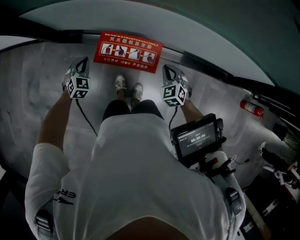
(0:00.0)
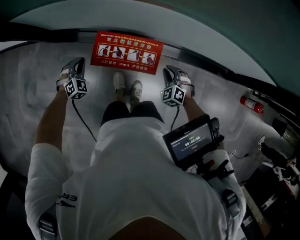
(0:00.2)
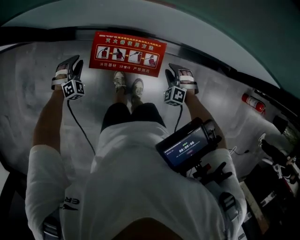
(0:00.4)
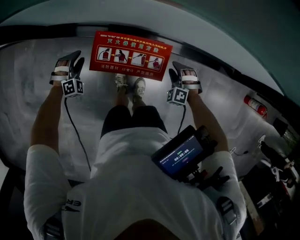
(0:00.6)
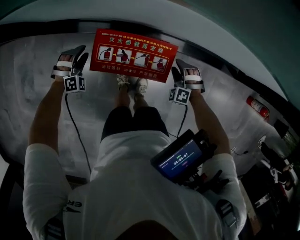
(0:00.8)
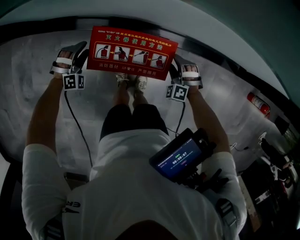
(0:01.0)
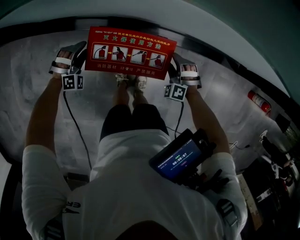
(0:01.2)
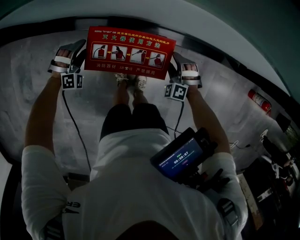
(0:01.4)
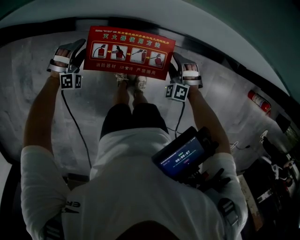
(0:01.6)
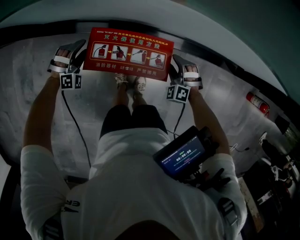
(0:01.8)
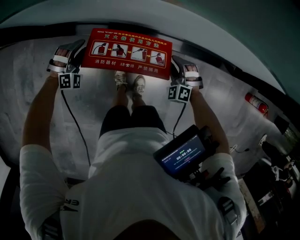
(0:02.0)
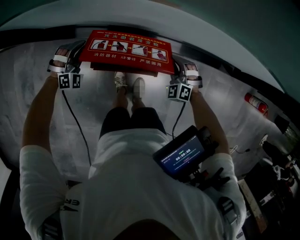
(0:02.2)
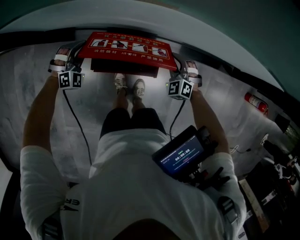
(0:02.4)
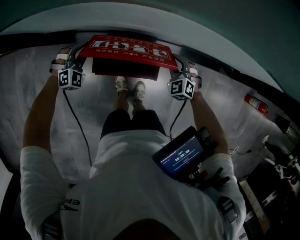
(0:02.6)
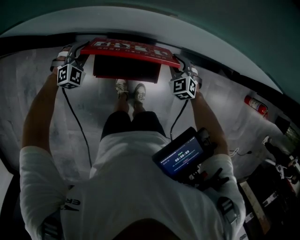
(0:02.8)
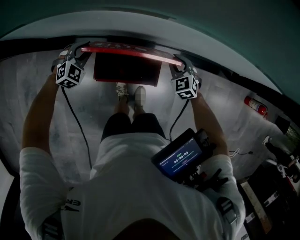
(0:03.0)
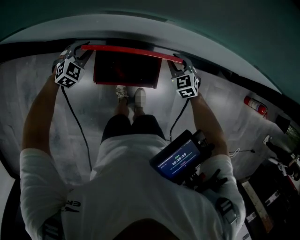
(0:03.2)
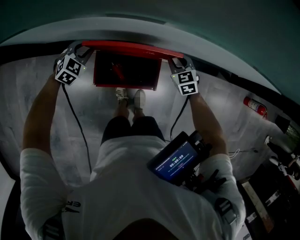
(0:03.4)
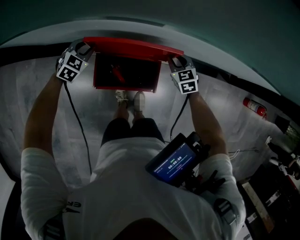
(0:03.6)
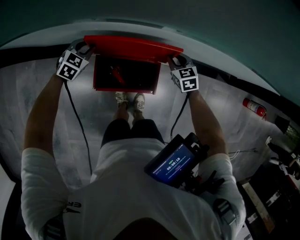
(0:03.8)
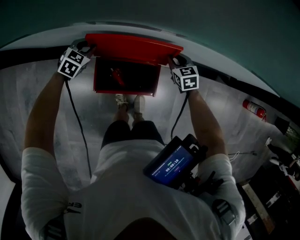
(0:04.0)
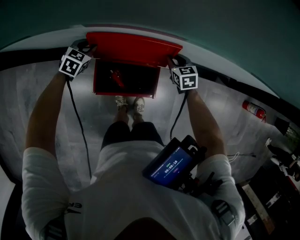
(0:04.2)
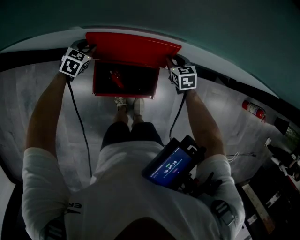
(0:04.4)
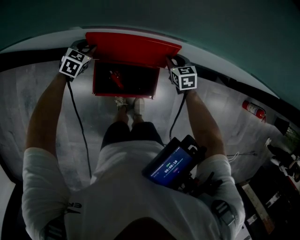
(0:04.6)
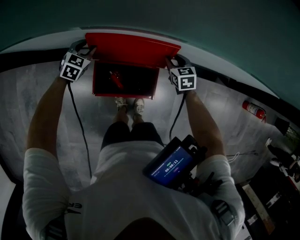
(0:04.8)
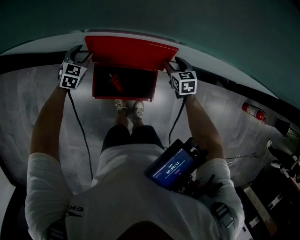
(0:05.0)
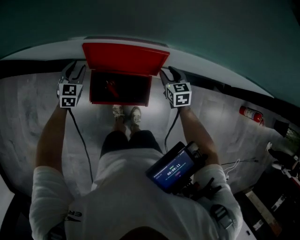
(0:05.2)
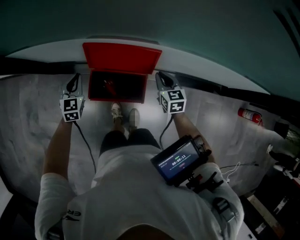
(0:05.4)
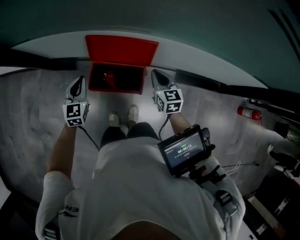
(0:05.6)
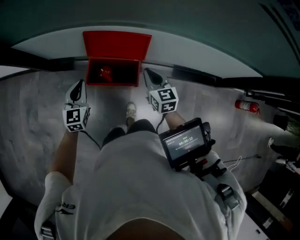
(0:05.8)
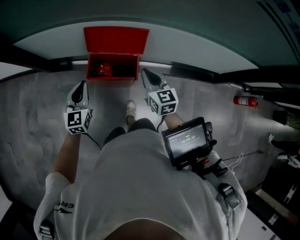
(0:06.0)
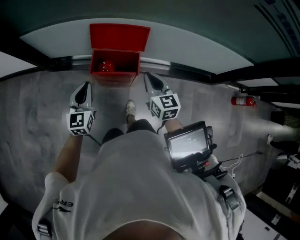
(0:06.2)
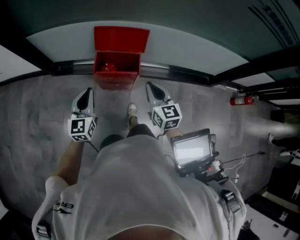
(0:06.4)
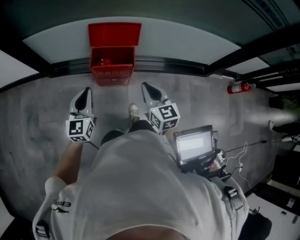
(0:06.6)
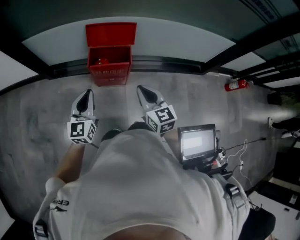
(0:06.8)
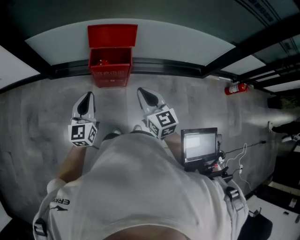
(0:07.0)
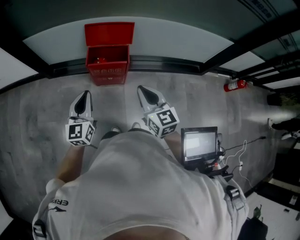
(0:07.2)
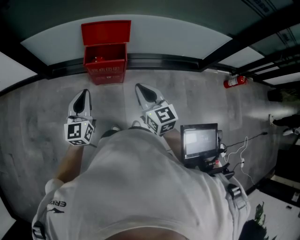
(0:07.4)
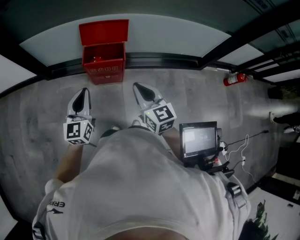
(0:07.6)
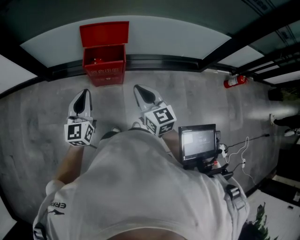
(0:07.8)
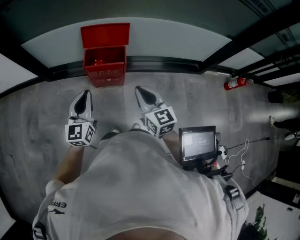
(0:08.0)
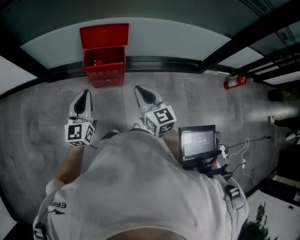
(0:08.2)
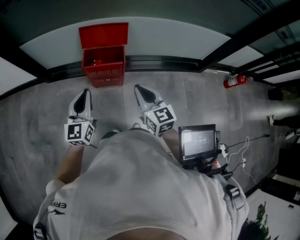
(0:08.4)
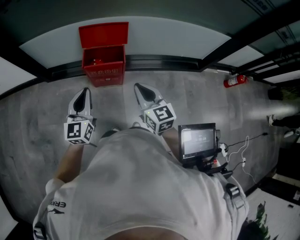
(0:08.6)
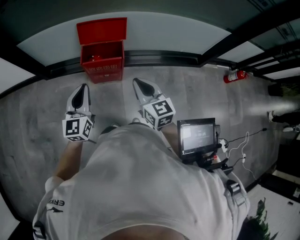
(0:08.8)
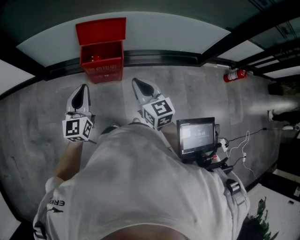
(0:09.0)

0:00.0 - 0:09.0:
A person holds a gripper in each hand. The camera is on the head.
0:00.0 - 0:01.6: The right gripper travels downward by approximately 15 cm, rotates some 40 degrees, and opens its fingers; the left gripper is displaced downward and forward by approximately 15 cm, twists about 50 degrees clockwise, seen from behind, and opens.
0:01.6 - 0:03.0: Both grippers travel together upward and forward, approximately 10 cm. The right gripper swivels roughly 40 degrees, and closes its fingers. Meanwhile the left gripper swivels about 30 degrees, and closes.
0:03.0 - 0:04.4: Both grippers move forward, roughly 10 cm. The left gripper turns by about 30 degrees. The right gripper rotates about 30 degrees.
0:04.4 - 0:06.0: The grippers both shift backward and upward by about 35 cm. The left gripper tips its fingers upward by approximately 40 degrees, and closes up, while the right gripper changes its angle by roughly 30 degrees.
0:06.0 - 0:07.6: The right gripper goes some 30 cm backward. The left gripper moves backward and upward, approximately 25 cm.
0:07.6 - 0:09.0: The grippers make only small movements.

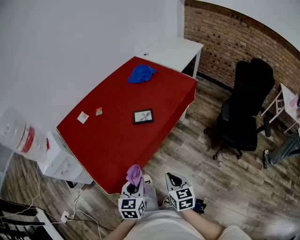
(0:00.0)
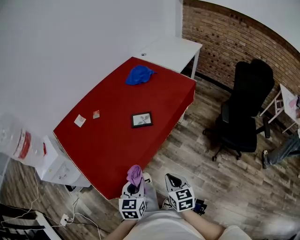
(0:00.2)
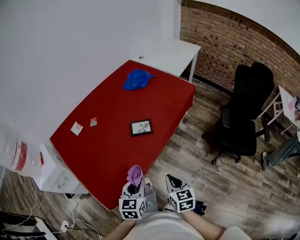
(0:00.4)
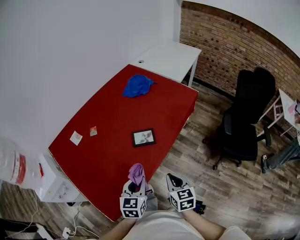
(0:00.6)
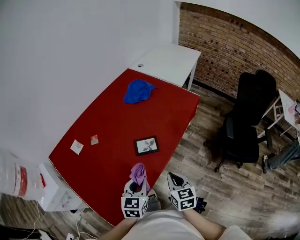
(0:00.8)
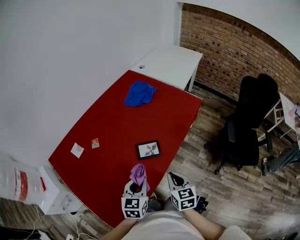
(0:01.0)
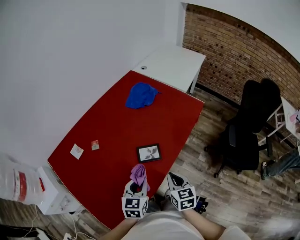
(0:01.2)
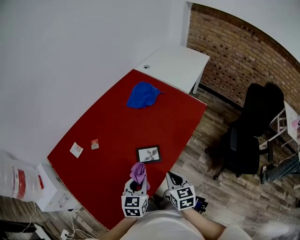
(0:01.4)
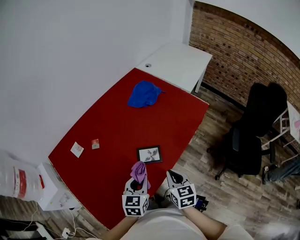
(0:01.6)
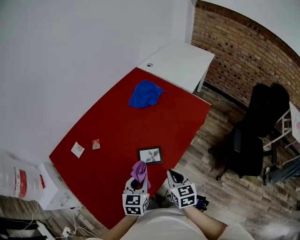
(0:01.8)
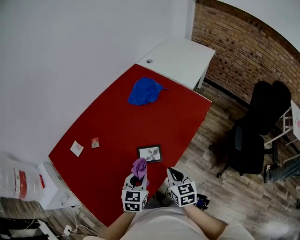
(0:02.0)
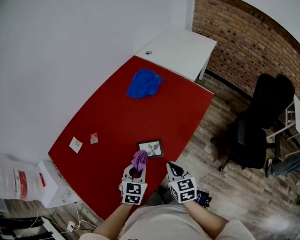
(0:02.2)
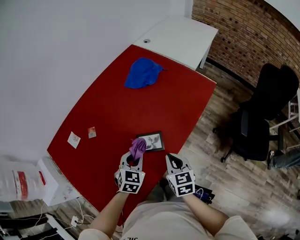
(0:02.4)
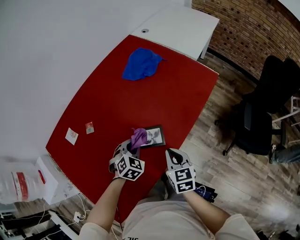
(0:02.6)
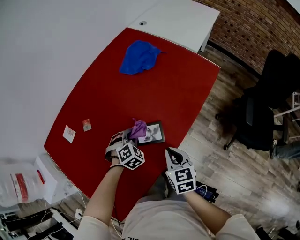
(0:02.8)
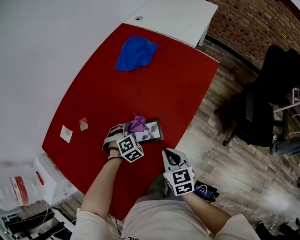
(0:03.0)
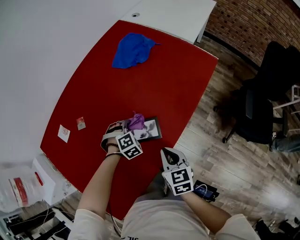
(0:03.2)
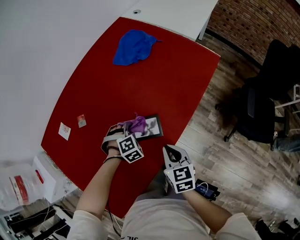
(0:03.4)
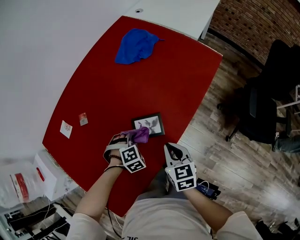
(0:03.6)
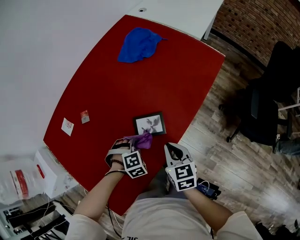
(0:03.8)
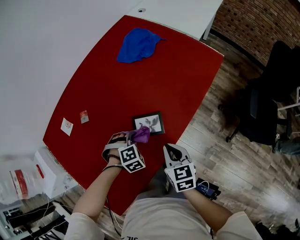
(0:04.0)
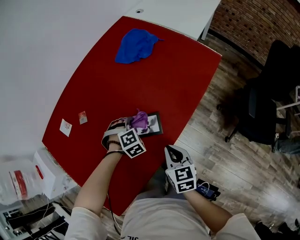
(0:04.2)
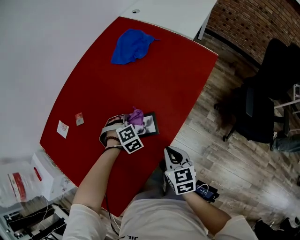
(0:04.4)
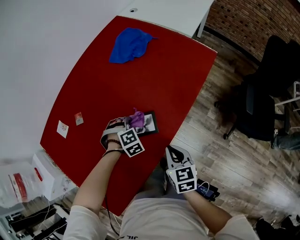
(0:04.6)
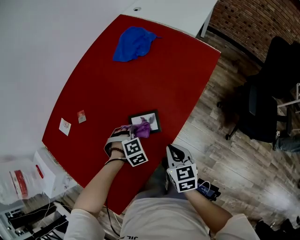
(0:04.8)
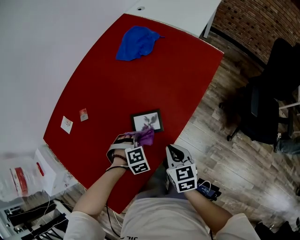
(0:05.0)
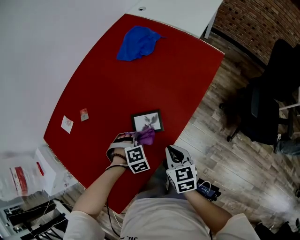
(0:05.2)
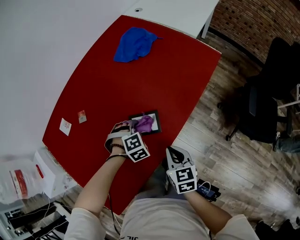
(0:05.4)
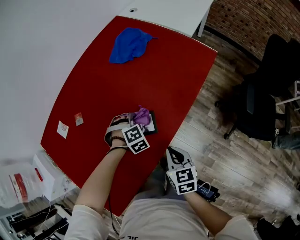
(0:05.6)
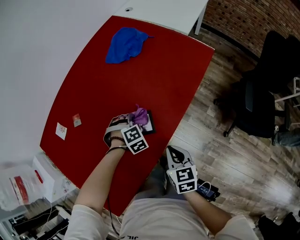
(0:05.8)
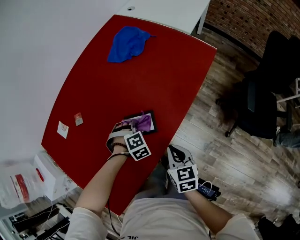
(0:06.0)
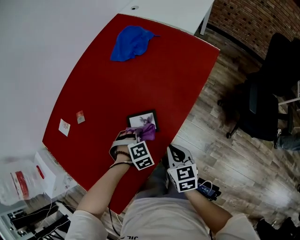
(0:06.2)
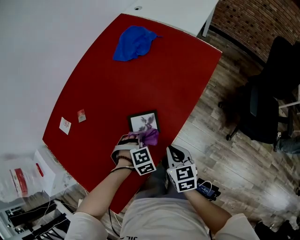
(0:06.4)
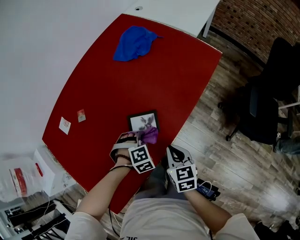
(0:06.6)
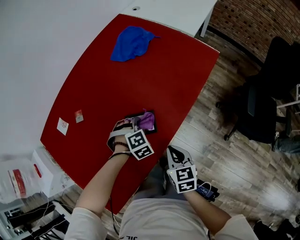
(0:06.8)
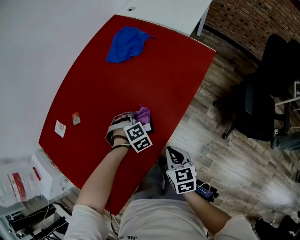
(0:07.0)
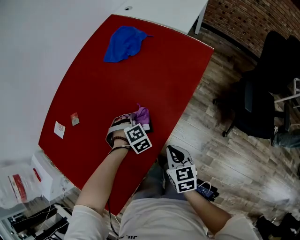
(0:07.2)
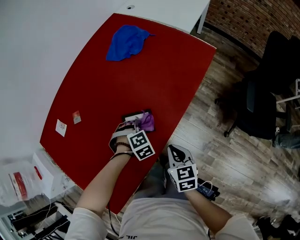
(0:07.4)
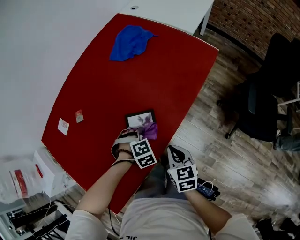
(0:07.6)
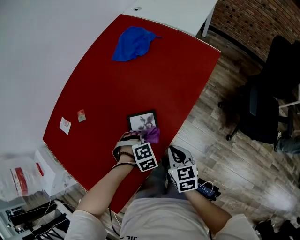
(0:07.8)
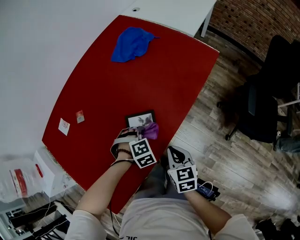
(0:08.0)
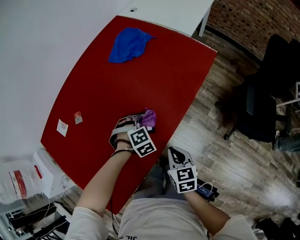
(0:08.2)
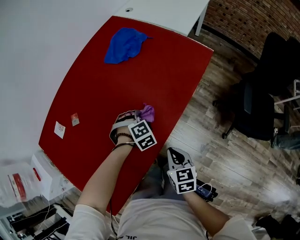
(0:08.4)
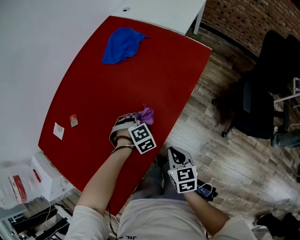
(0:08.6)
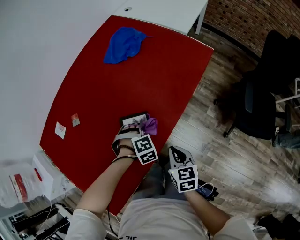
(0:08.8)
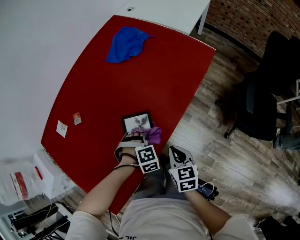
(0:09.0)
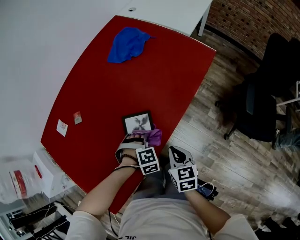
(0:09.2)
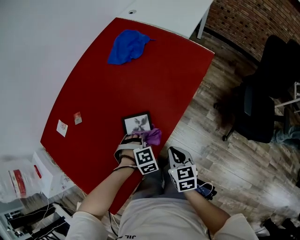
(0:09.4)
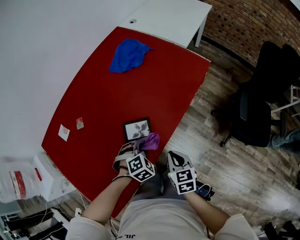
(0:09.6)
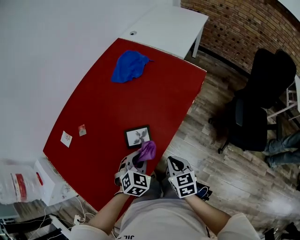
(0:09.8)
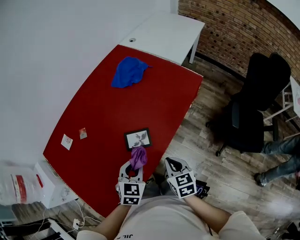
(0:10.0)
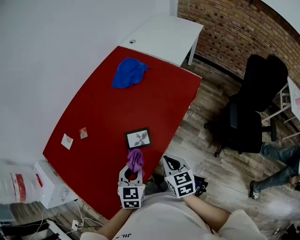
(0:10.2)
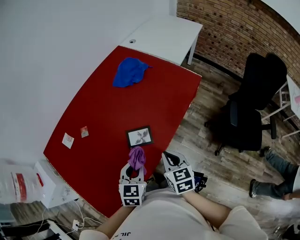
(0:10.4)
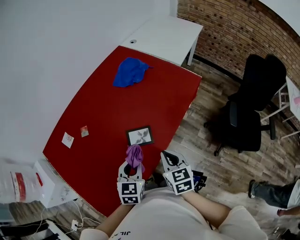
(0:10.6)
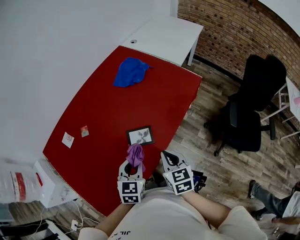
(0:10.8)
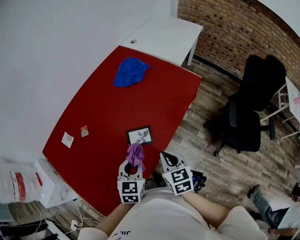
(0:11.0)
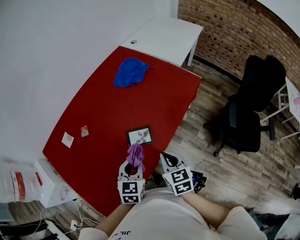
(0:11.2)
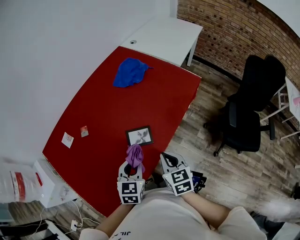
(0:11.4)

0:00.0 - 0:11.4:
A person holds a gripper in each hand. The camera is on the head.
0:00.0 - 0:01.4: The grippers both shift forward by roughly 30 cm.
0:01.4 - 0:02.8: The left gripper moves downward and forward, roughly 25 cm, and rolls clockwise, seen from behind, by some 50 degrees. The right gripper travels downward and forward by about 10 cm.
0:02.8 - 0:04.2: The left gripper goes backward and returns, about 10 cm each way.
0:04.2 - 0:05.6: The left gripper moves some 10 cm backward and comes back.
0:05.6 - 0:07.2: The left gripper reaches some 10 cm backward, then returns.
0:08.6 - 0:10.0: The right gripper is displaced upward by roughly 10 cm, while the left gripper moves upward and backward, about 20 cm, and rotates around the line of its fingers by about 50 degrees, counterclockwise from behind.
0:10.0 - 0:11.4: The right gripper moves approximately 5 cm.

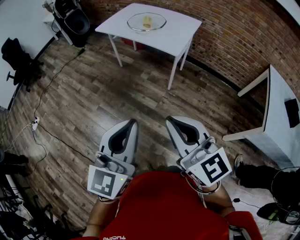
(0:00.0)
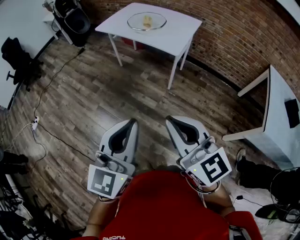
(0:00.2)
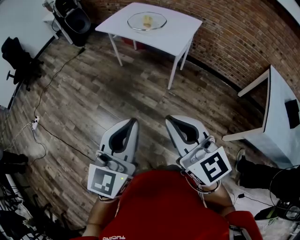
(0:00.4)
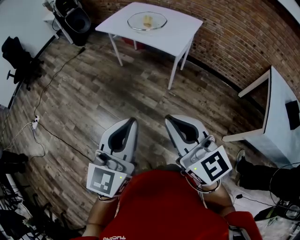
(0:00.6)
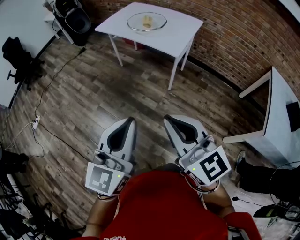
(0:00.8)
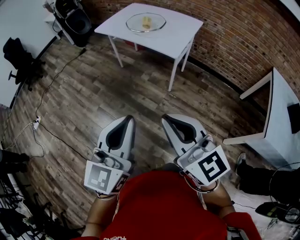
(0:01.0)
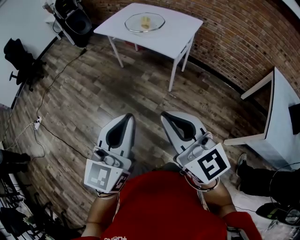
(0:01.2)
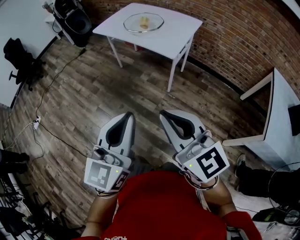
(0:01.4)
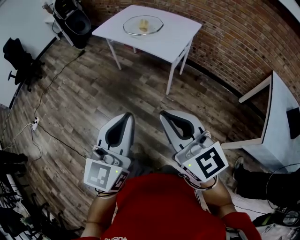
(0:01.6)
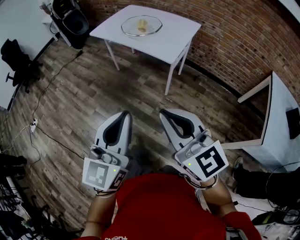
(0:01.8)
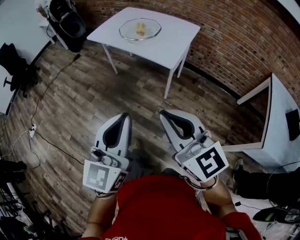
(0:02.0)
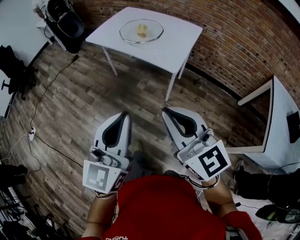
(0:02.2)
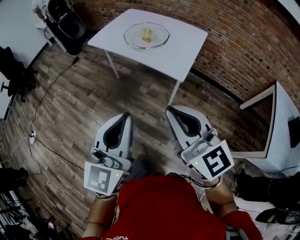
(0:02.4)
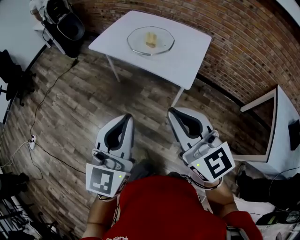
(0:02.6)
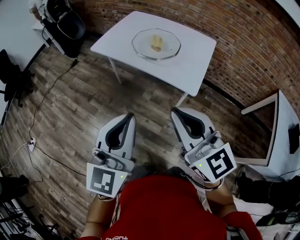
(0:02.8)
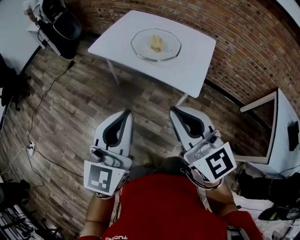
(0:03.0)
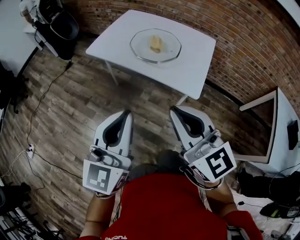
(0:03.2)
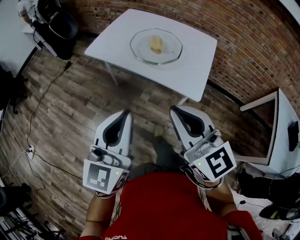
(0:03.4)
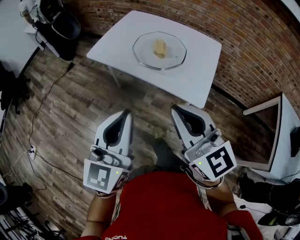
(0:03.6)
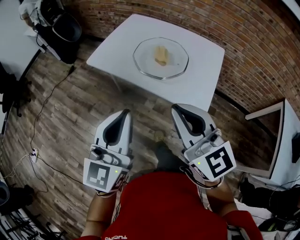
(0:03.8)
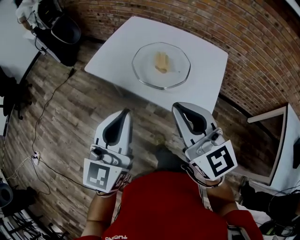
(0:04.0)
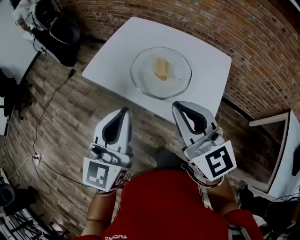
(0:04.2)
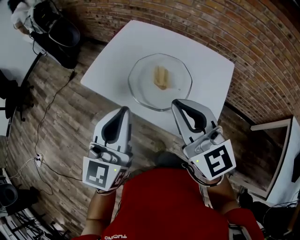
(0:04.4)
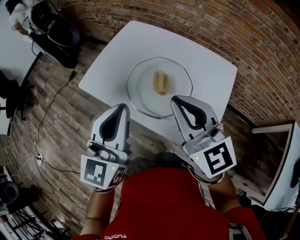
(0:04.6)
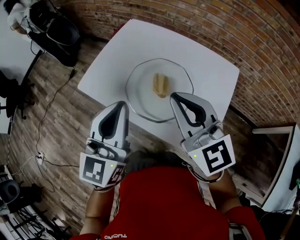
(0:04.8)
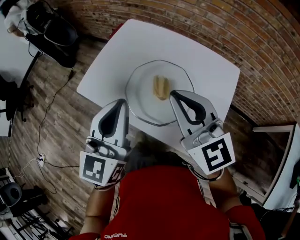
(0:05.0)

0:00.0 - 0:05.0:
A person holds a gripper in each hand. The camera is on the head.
0:00.0 - 0:01.6: The grippers both shift forward and to the right by roughly 10 cm.
0:01.6 - 0:03.4: Both grippers travel together forward, approximately 35 cm.
0:03.4 - 0:05.0: Both grippers move forward, approximately 35 cm.
